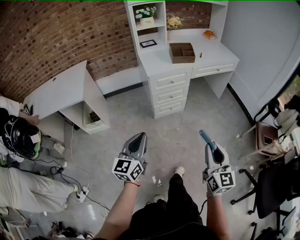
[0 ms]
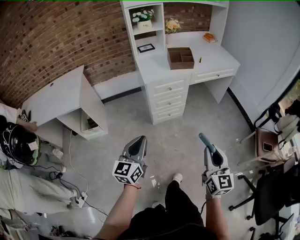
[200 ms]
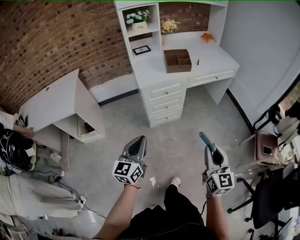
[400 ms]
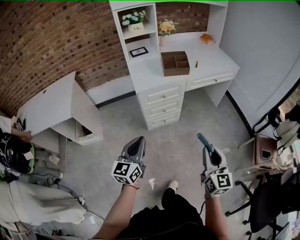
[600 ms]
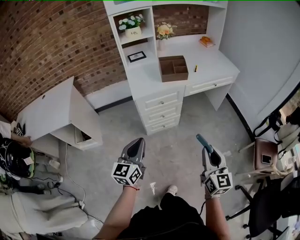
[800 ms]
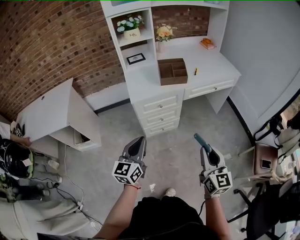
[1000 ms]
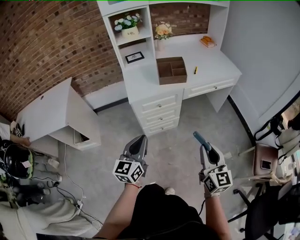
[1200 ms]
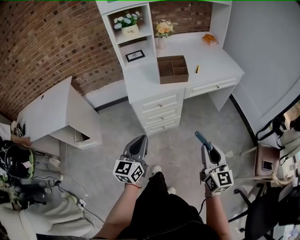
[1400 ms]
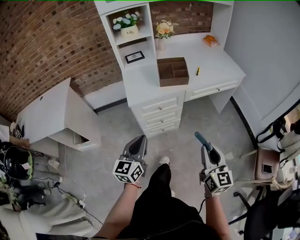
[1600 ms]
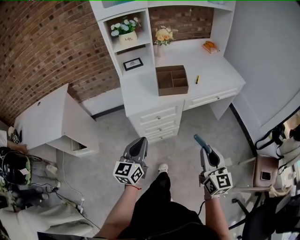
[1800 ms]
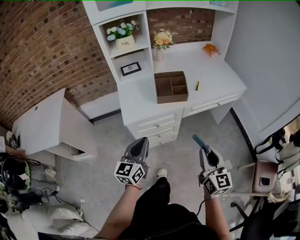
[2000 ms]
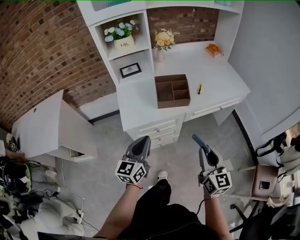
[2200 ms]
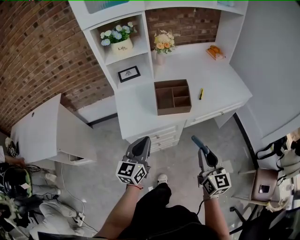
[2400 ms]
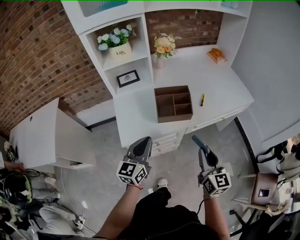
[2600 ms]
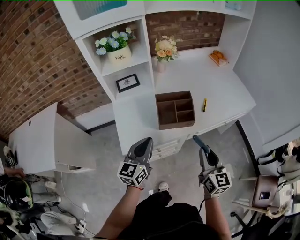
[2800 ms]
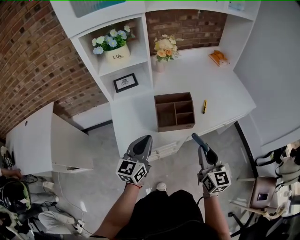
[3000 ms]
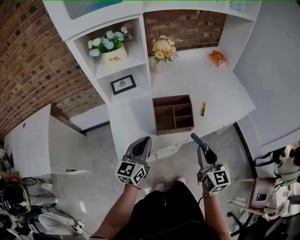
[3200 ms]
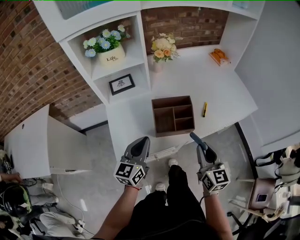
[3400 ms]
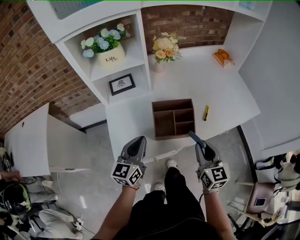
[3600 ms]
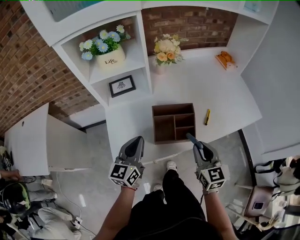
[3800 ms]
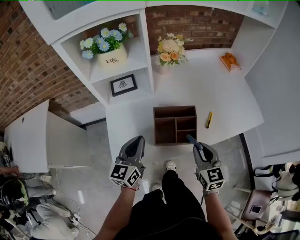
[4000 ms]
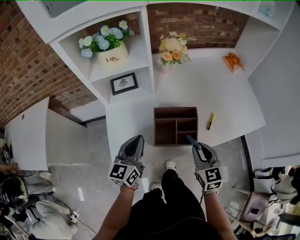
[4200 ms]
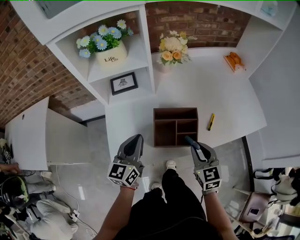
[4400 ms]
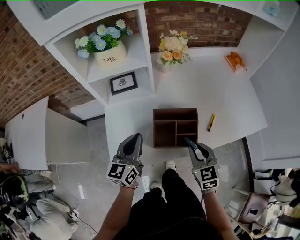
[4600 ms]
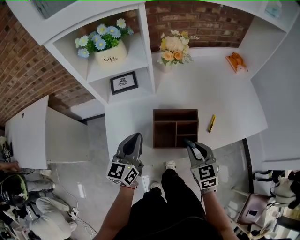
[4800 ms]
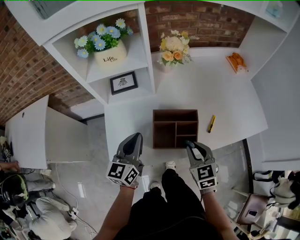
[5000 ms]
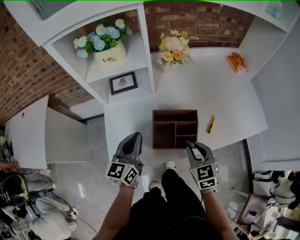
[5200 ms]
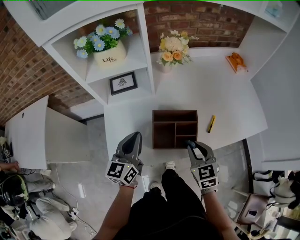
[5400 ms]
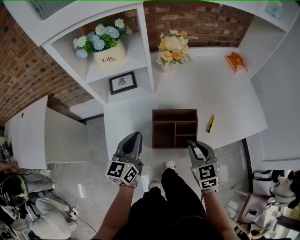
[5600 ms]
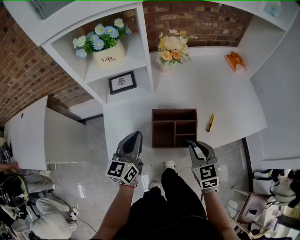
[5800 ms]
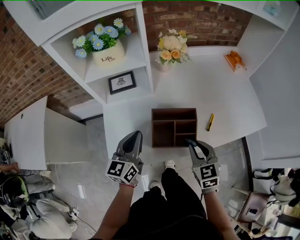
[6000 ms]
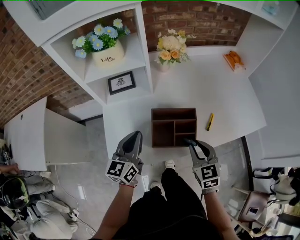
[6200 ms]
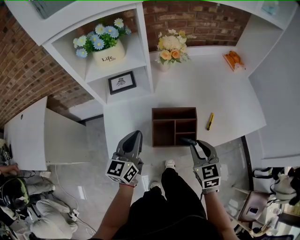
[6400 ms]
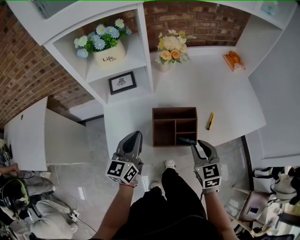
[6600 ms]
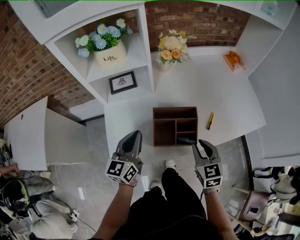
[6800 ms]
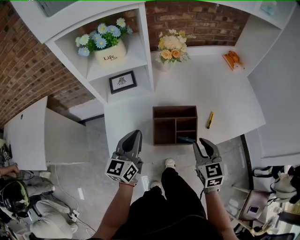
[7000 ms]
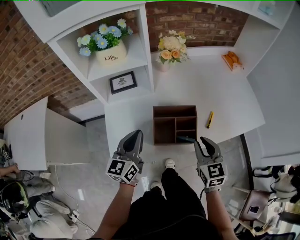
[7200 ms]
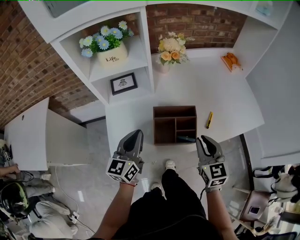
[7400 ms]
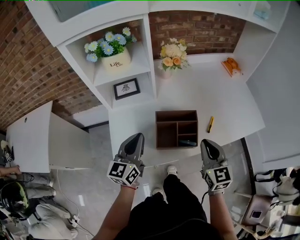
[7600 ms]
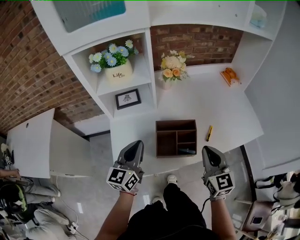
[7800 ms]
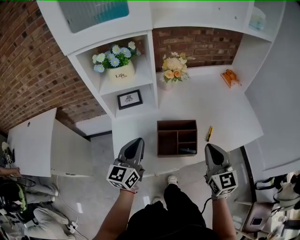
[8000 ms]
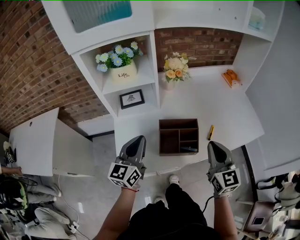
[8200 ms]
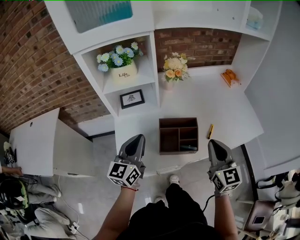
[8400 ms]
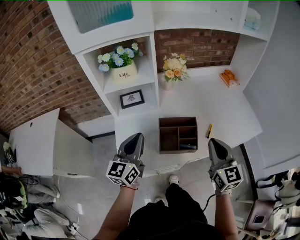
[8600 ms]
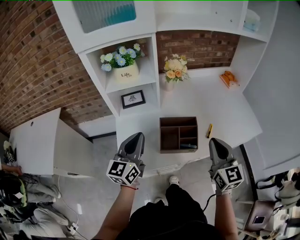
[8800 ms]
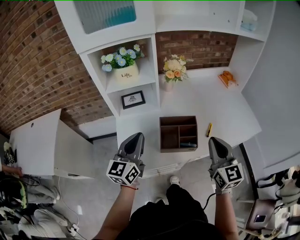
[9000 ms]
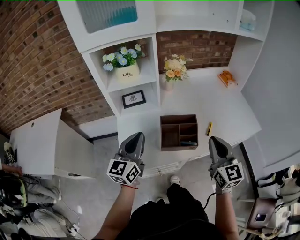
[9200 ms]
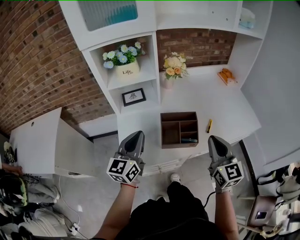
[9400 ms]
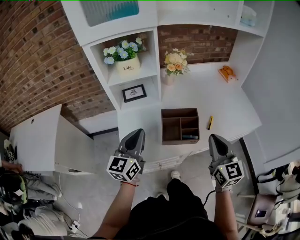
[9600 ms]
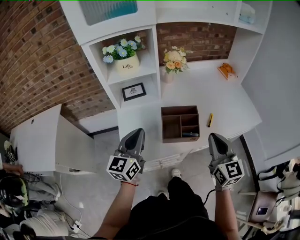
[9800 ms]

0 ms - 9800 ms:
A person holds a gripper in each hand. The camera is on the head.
0 ms - 1400 ms: Both grippers move forward, about 25 cm.
1400 ms - 2800 ms: The two grippers go roughly 30 cm forward.
2800 ms - 4200 ms: The right gripper goes some 15 cm forward and downward, and swivels about 20 degrees. The left gripper goes roughly 10 cm forward.
4200 ms - 7000 ms: The grippers make only small movements.
7000 ms - 8400 ms: The right gripper travels upward by some 15 cm, rotates about 20 degrees, and closes. The left gripper shifts some 5 cm upward.
8400 ms - 9800 ms: The right gripper changes place by some 5 cm.

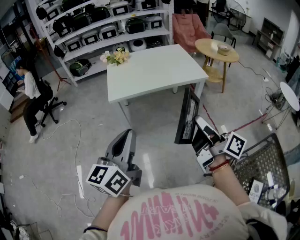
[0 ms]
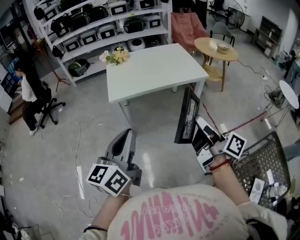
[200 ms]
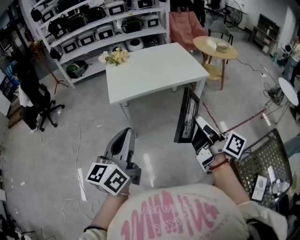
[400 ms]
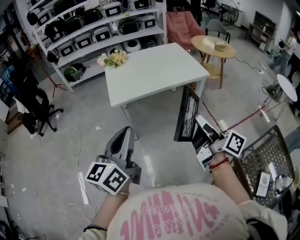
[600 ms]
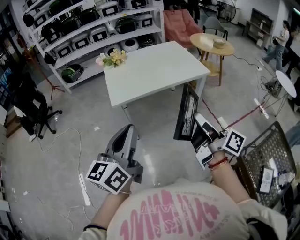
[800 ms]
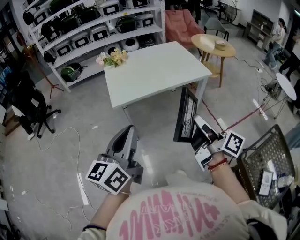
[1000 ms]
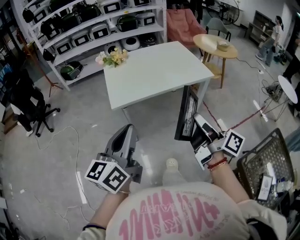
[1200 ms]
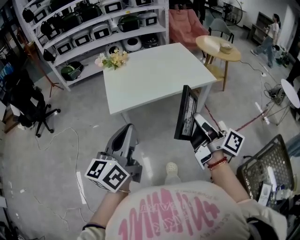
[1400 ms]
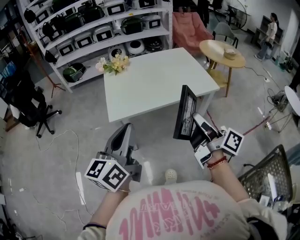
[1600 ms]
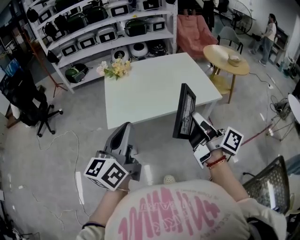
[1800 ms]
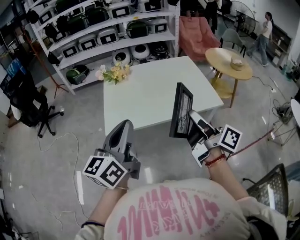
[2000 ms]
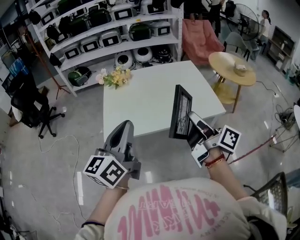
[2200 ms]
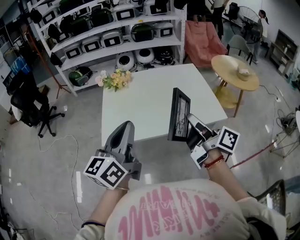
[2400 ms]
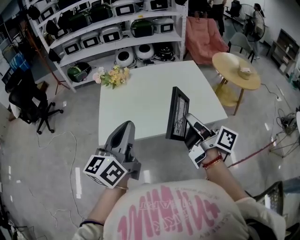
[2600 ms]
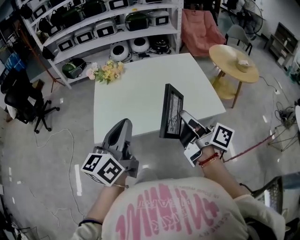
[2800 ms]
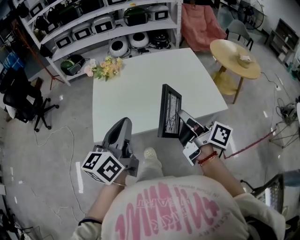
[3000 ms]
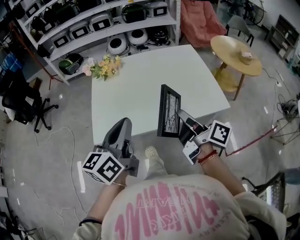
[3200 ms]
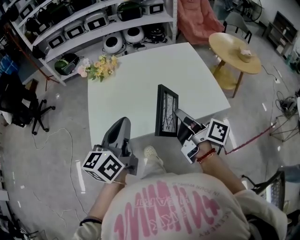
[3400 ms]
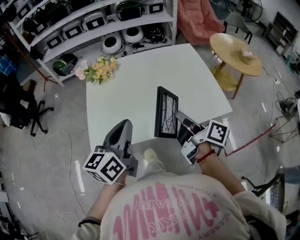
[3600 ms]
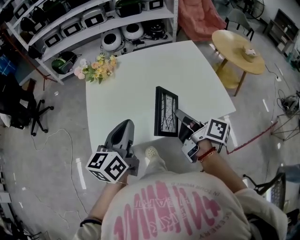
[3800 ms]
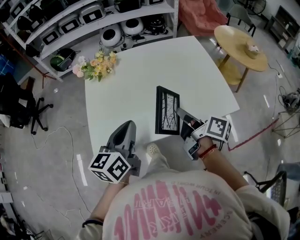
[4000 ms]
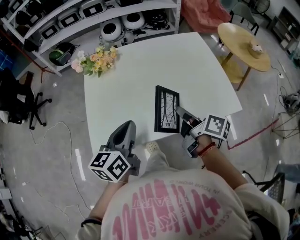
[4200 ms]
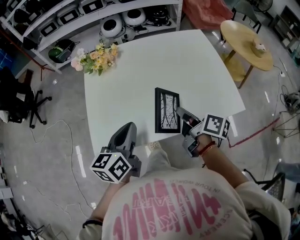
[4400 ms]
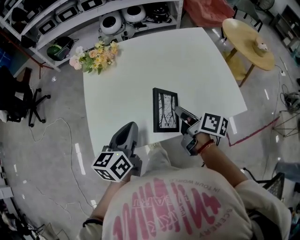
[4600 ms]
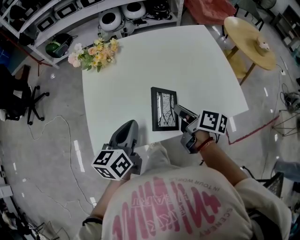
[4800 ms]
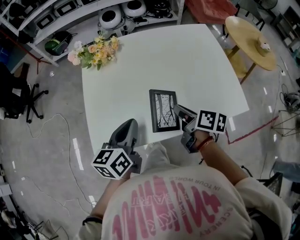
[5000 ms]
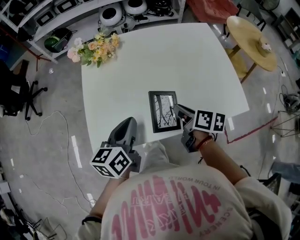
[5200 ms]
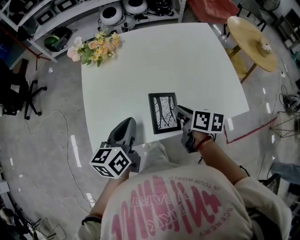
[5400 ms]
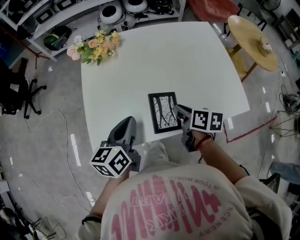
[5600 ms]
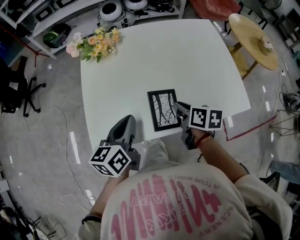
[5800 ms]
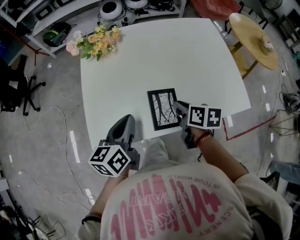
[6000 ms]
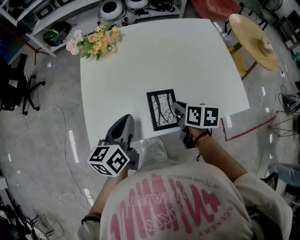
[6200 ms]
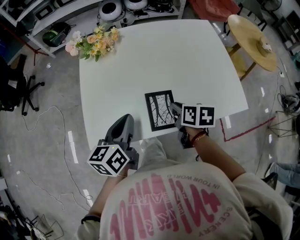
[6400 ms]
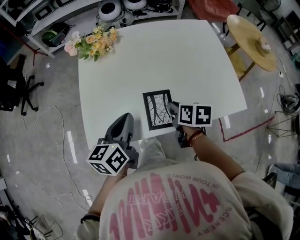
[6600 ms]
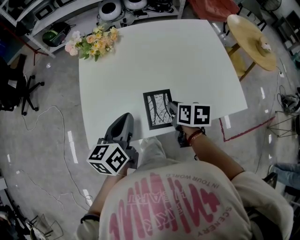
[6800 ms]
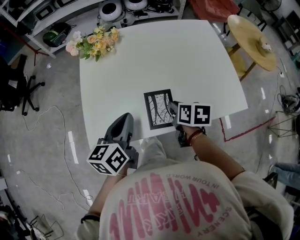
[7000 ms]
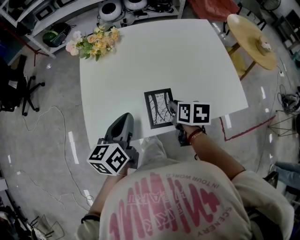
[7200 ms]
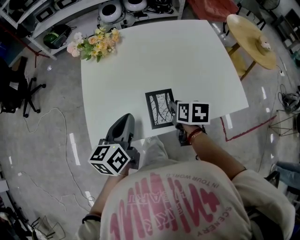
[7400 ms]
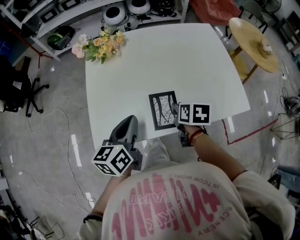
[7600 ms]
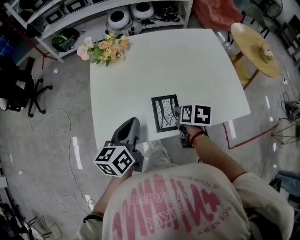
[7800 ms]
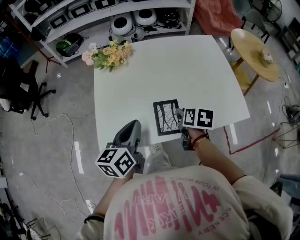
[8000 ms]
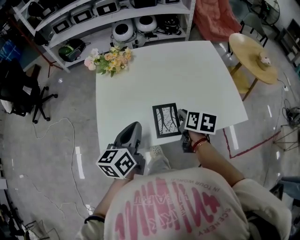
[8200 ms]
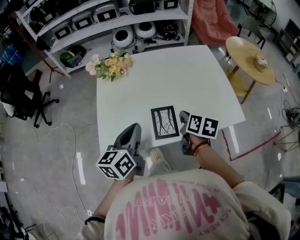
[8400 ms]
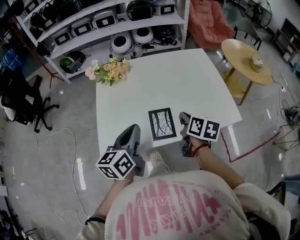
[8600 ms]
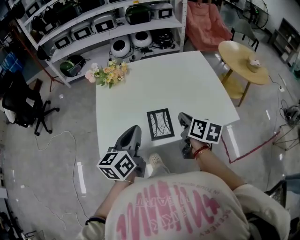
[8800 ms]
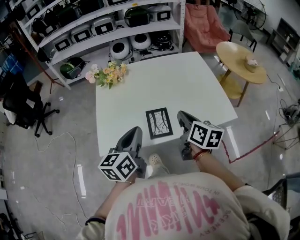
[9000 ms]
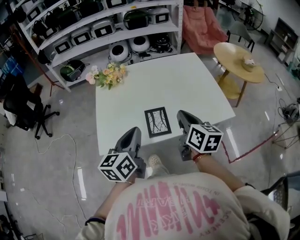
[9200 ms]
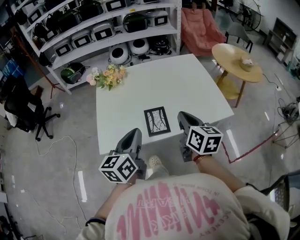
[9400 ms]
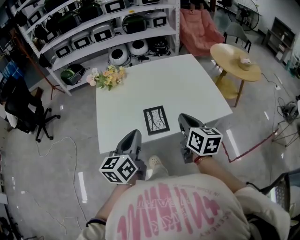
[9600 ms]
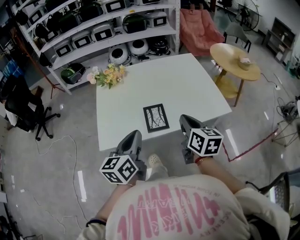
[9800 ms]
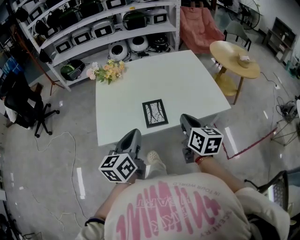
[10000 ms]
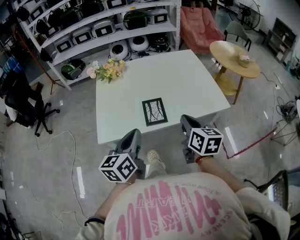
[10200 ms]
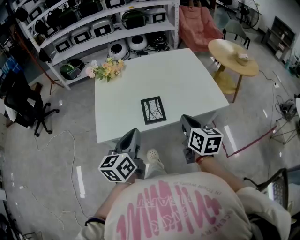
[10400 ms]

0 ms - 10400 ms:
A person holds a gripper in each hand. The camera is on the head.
0 ms - 1400 ms: The grippers both shift forward and to the left by about 15 cm.
1400 ms - 3000 ms: The grippers both shift forward by about 25 cm.
3000 ms - 4400 ms: Both grippers move downward and forward, roughly 20 cm. The right gripper rotates some 20 degrees.
4400 ms - 6000 ms: The right gripper goes roughly 5 cm downward, and changes its angle by some 30 degrees; the left gripper moves approximately 5 cm.
6000 ms - 7400 ms: The grippers stay close to where they were, moving slightly.
7400 ms - 9000 ms: The left gripper is displaced upward and backward by approximately 10 cm. Meanwhile the right gripper shifts about 15 cm upward, tilts its fingers some 30 degrees upward, and closes up.
9000 ms - 10400 ms: The grippers both shift backward by about 10 cm.

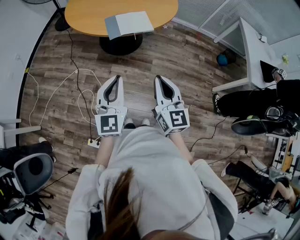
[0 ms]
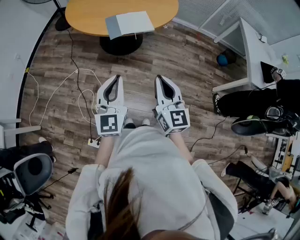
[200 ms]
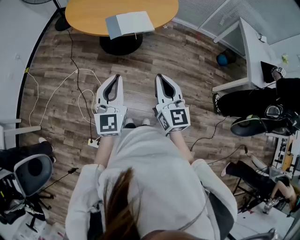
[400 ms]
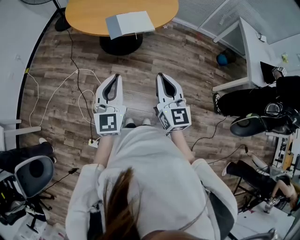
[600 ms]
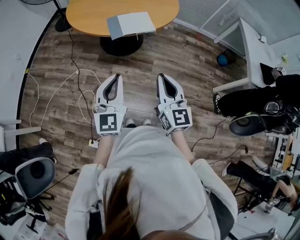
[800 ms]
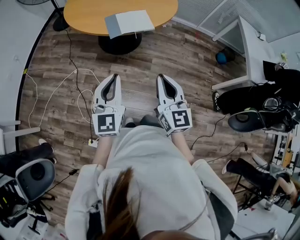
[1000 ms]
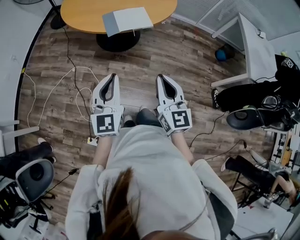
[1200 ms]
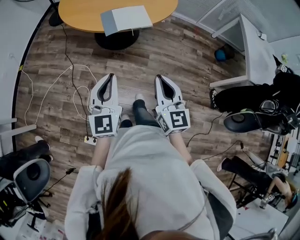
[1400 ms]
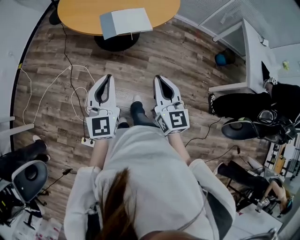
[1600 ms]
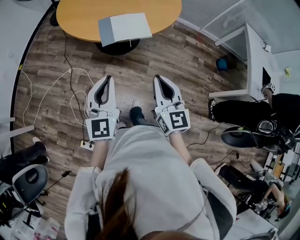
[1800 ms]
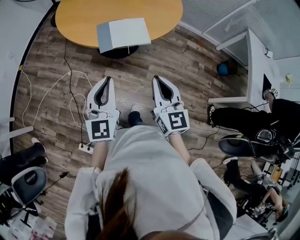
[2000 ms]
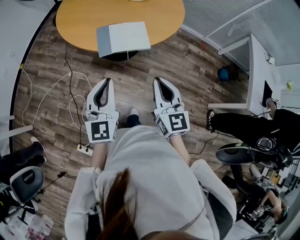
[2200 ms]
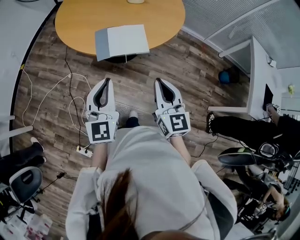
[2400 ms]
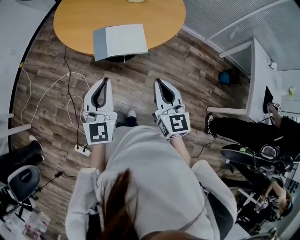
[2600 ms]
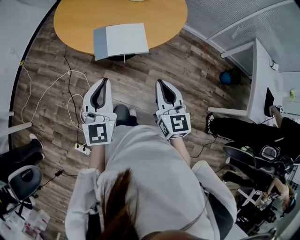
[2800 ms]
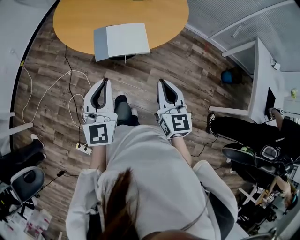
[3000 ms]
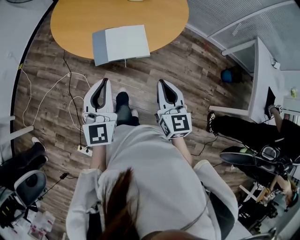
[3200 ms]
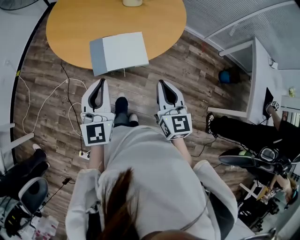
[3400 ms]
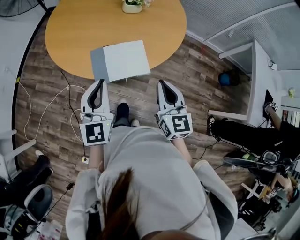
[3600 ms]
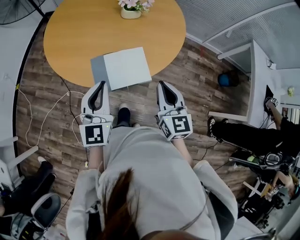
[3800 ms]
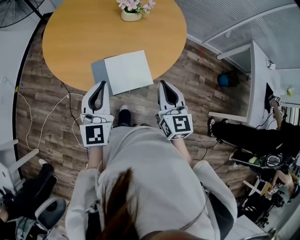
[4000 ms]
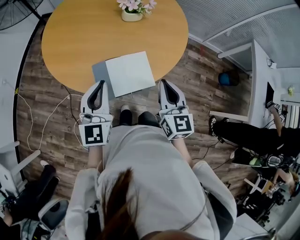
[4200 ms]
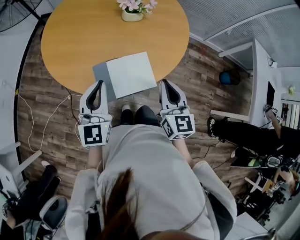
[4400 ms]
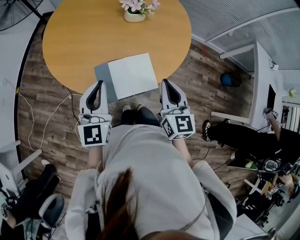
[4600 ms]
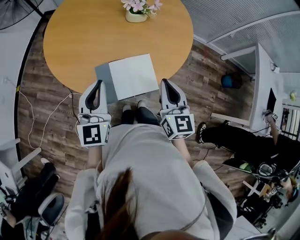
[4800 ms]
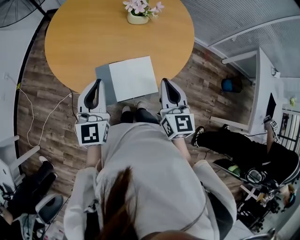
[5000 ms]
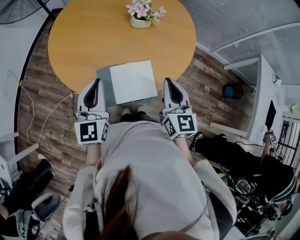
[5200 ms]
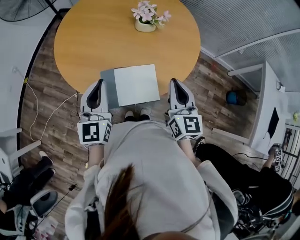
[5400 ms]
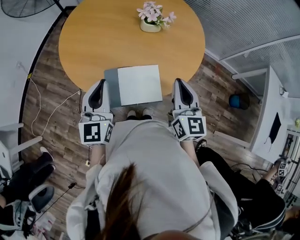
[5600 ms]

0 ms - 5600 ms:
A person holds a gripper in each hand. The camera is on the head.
0 ms - 1400 ms: The grippers move only a little.
1400 ms - 2800 ms: The grippers both shift forward and to the right by about 20 cm.
2800 ms - 4200 ms: Both grippers move forward, some 20 cm.
4200 ms - 5600 ms: The right gripper moves forward, roughly 10 cm; the left gripper moves roughly 5 cm.
